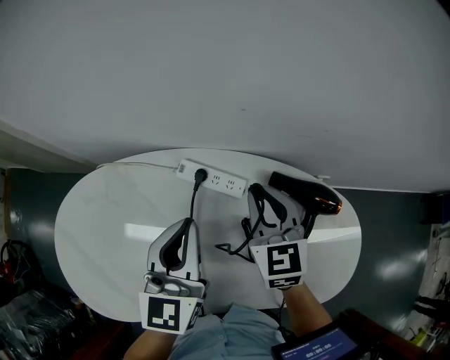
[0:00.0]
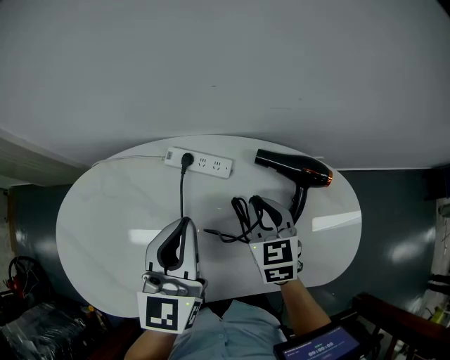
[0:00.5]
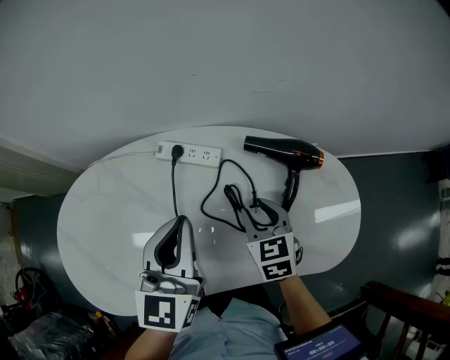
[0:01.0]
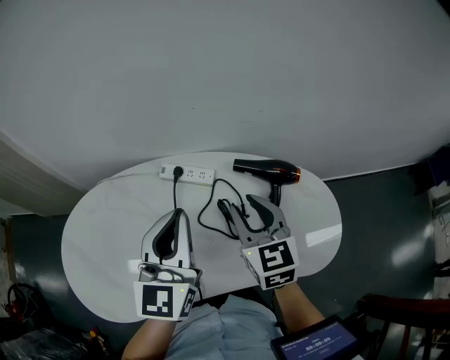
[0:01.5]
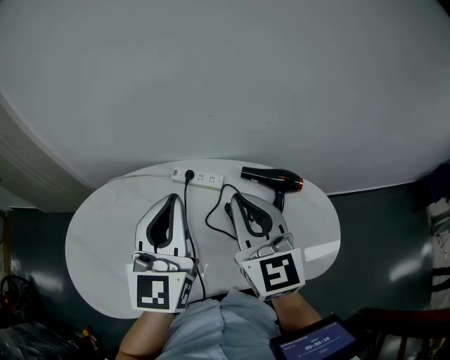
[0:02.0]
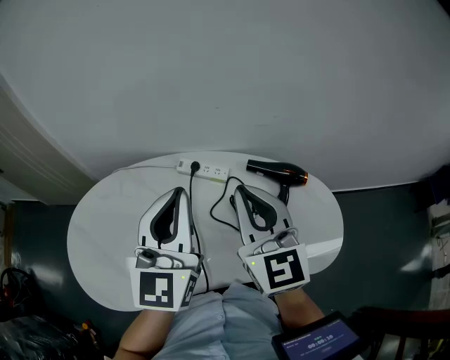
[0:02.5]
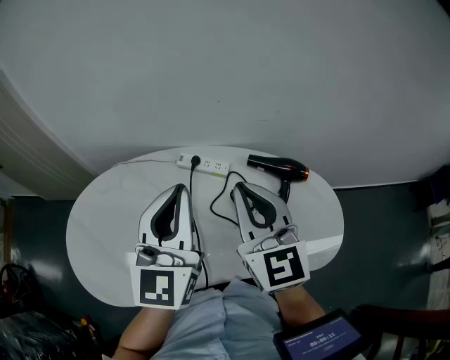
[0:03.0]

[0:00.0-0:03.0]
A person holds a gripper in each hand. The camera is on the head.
0:00.0 to 0:01.5: The two grippers go approximately 10 cm backward and upward. The right gripper opens up.
0:01.5 to 0:03.0: The left gripper goes roughly 5 cm upward. Meanwhile the right gripper is displaced upward and to the left by roughly 15 cm, and closes up.

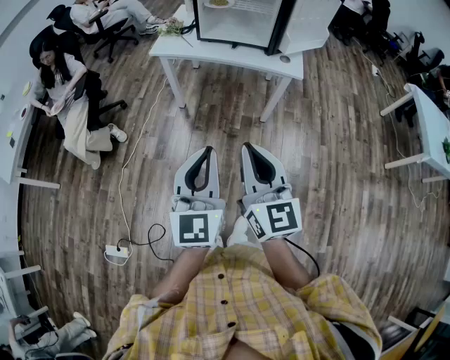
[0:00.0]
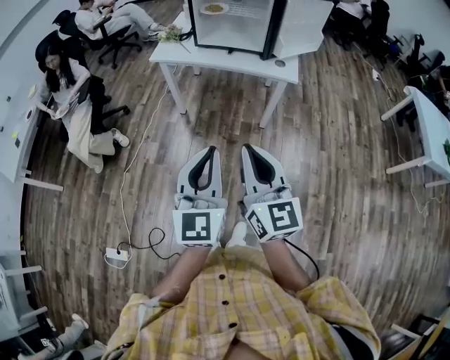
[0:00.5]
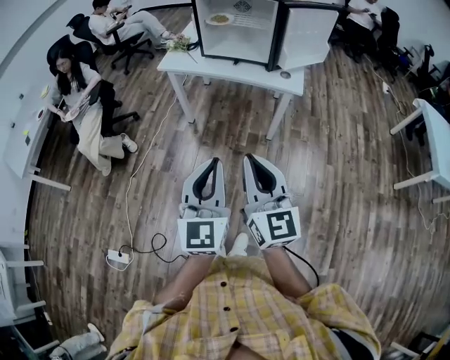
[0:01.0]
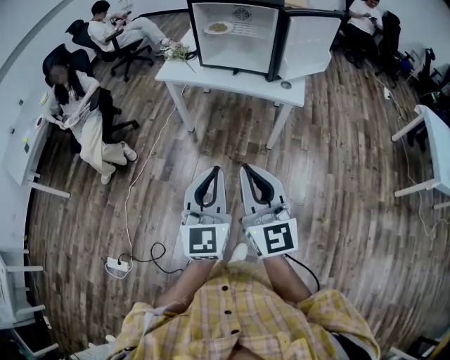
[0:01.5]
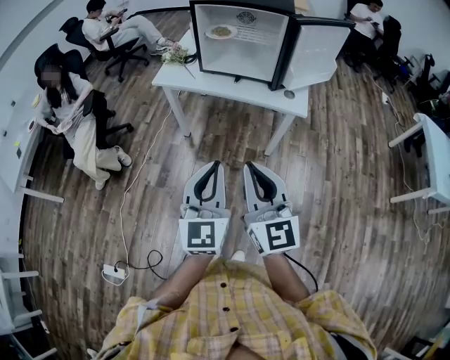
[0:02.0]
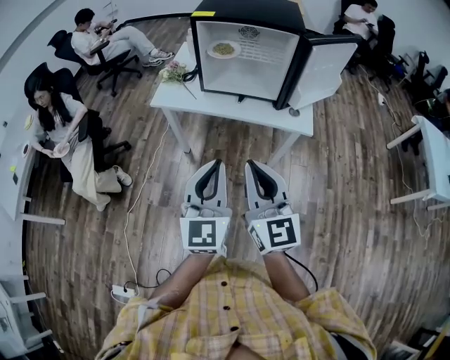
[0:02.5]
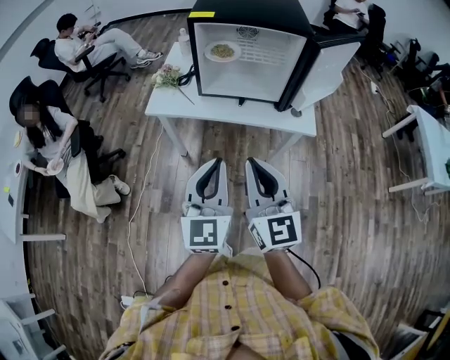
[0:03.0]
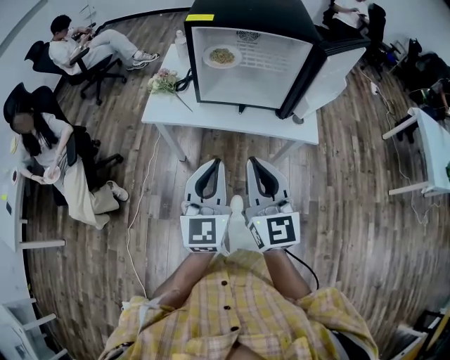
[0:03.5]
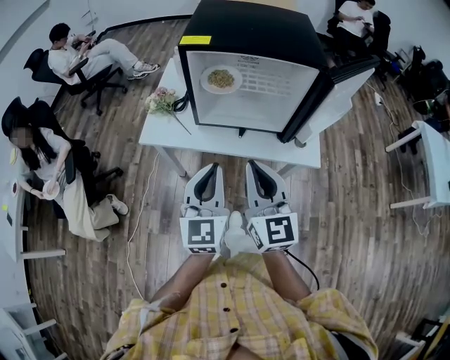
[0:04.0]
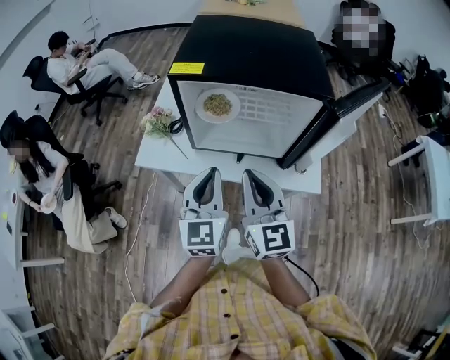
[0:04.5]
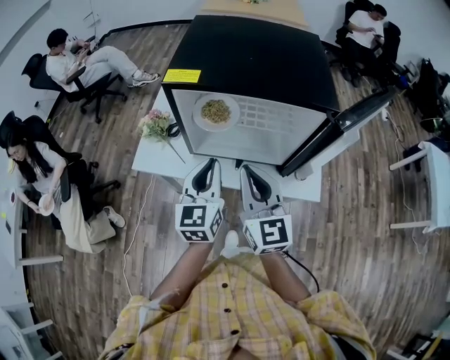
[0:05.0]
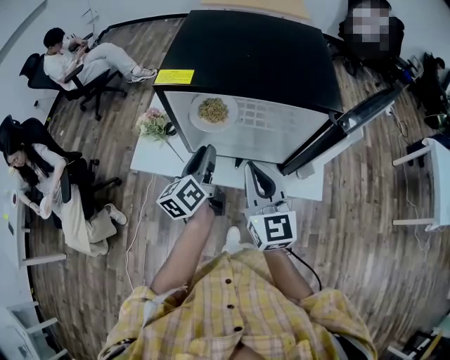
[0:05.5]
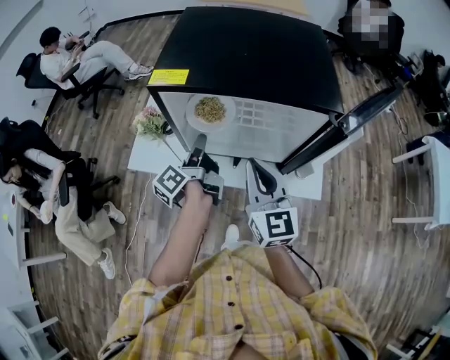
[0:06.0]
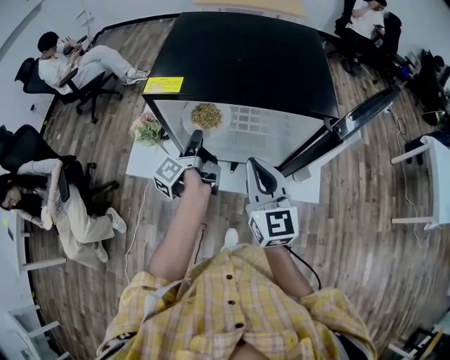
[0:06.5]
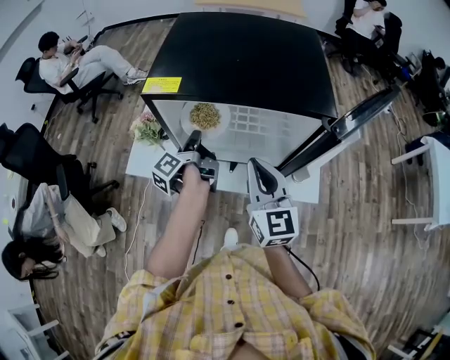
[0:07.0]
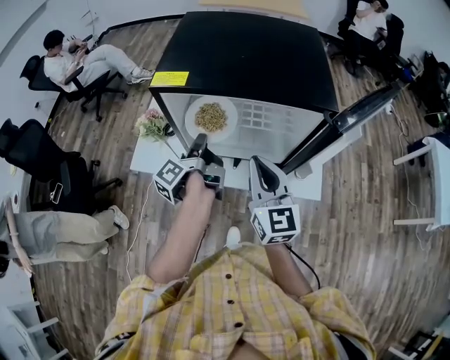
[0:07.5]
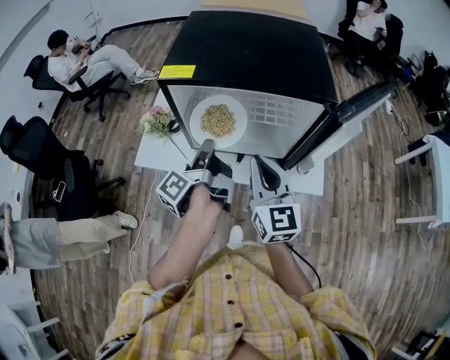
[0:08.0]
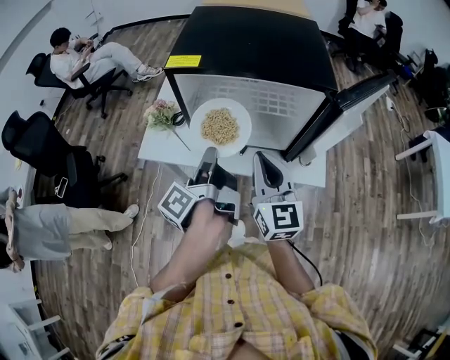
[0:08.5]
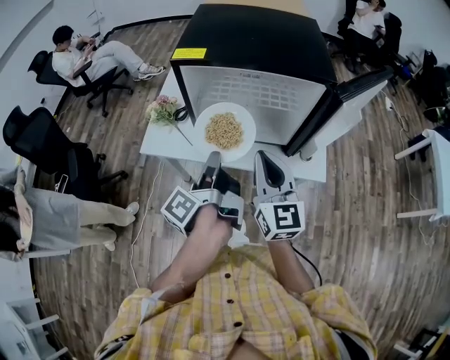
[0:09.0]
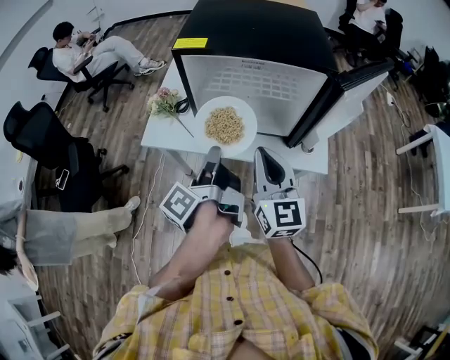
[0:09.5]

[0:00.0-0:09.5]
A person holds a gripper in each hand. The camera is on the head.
0:00.0 to 0:02.0: Both grippers move forward and to the right, roughly 15 cm.
0:02.0 to 0:04.0: Both grippers travel together forward, approximately 30 cm.
0:04.0 to 0:05.5: Both grippers move forward, about 20 cm. The left gripper twists approximately 50 degrees counterclockwise, seen from behind, and opens.
0:05.5 to 0:07.5: The left gripper rolls counterclockwise, seen from behind, by some 50 degrees.
0:07.5 to 0:09.5: The right gripper goes some 10 cm backward. Meanwhile the left gripper heads backward, covering approximately 15 cm.

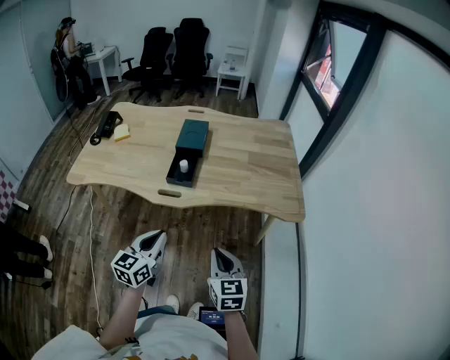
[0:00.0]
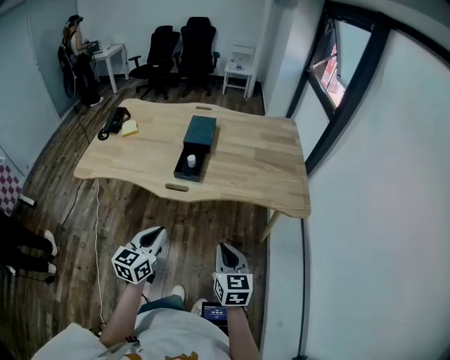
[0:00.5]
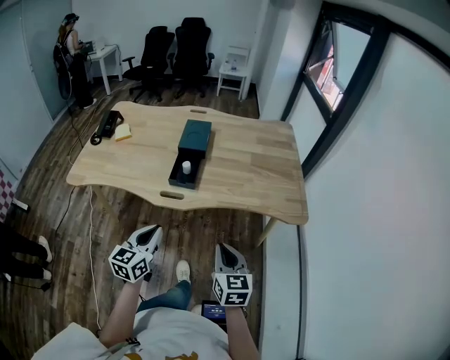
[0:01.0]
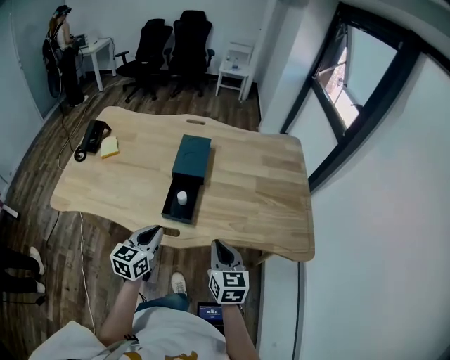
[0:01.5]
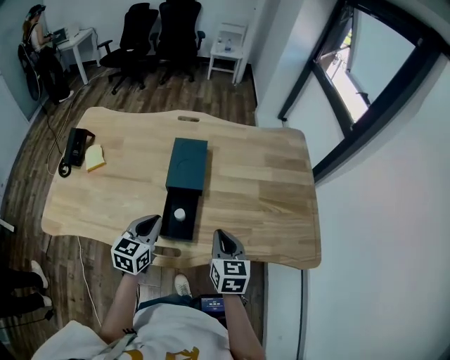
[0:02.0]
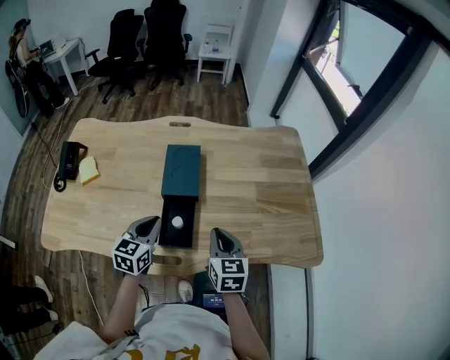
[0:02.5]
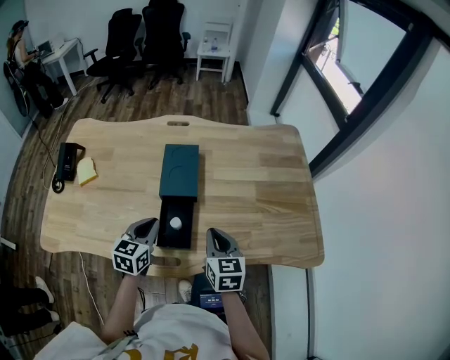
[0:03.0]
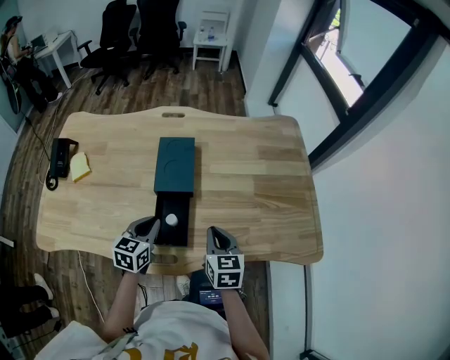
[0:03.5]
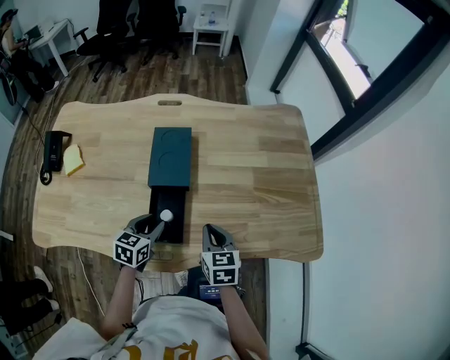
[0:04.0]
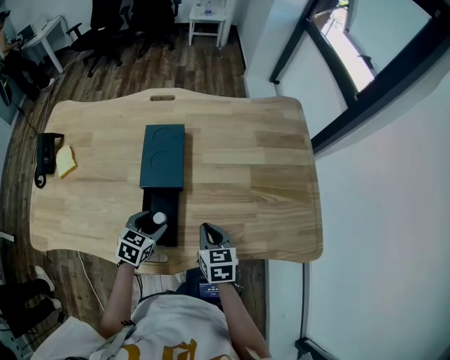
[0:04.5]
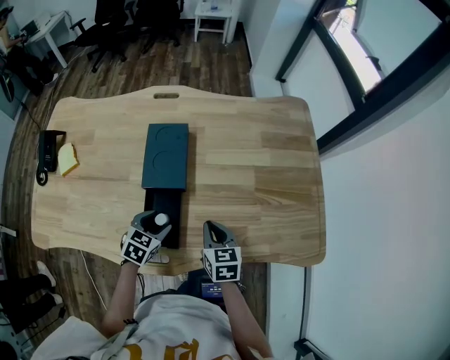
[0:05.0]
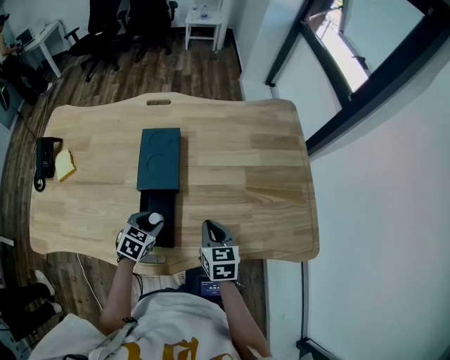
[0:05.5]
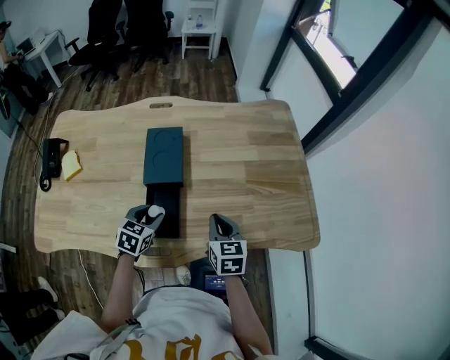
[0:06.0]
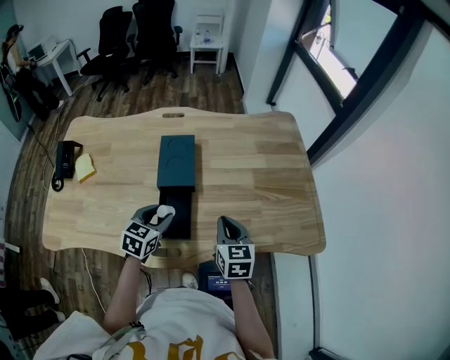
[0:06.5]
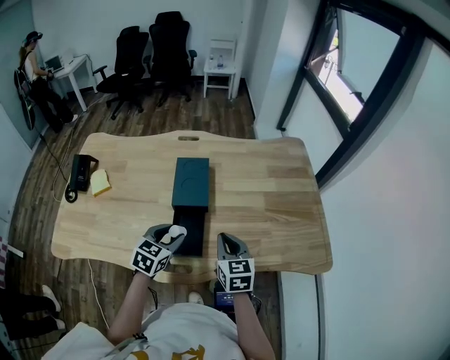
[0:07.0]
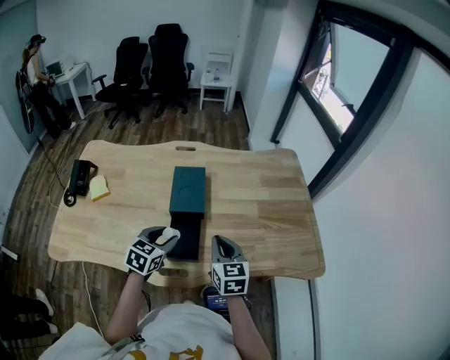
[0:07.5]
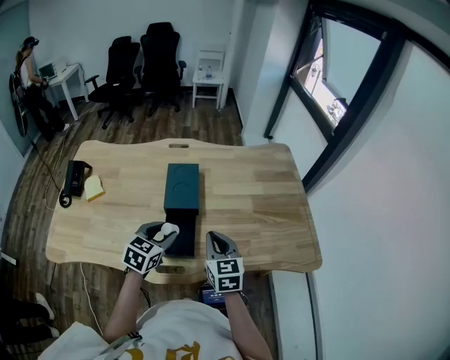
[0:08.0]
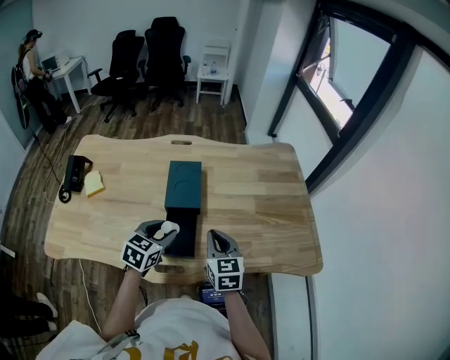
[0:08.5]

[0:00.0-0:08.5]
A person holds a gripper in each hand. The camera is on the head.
0:00.0 to 0:02.0: The two grippers go about 35 cm forward.
0:02.0 to 0:04.0: Both grippers travel together downward, roughly 10 cm. The left gripper opens its fingers.
0:04.0 to 0:06.5: Both grippers travel together upward, roughly 5 cm.
0:06.5 to 0:08.5: The right gripper shifts some 5 cm to the left. The left gripper travels upward by about 5 cm.

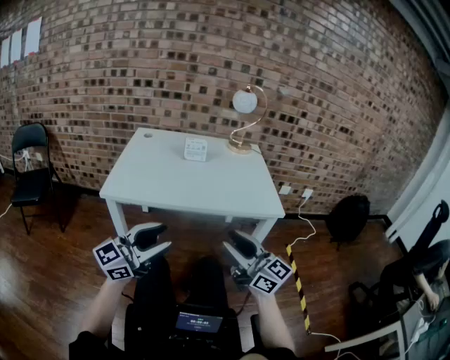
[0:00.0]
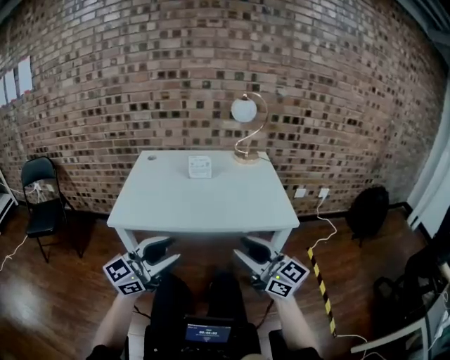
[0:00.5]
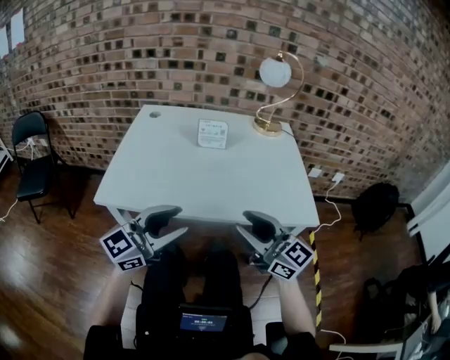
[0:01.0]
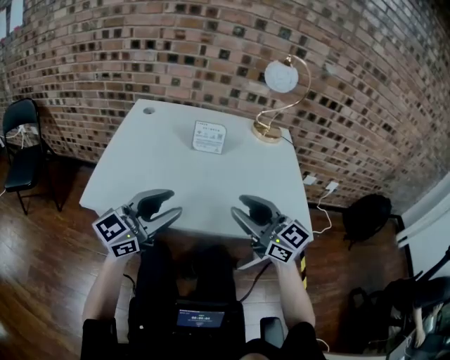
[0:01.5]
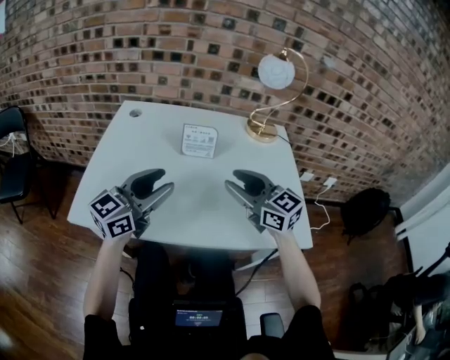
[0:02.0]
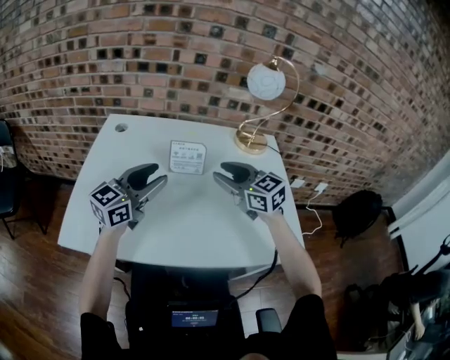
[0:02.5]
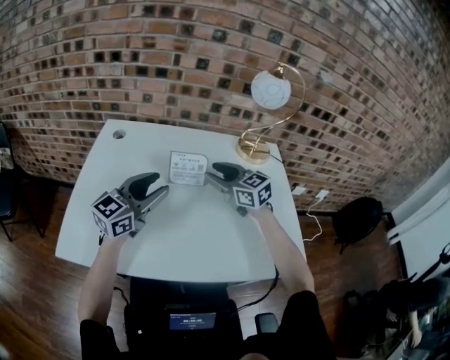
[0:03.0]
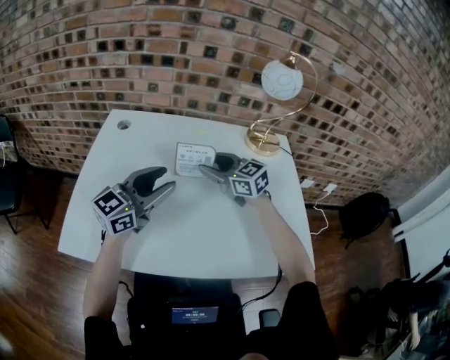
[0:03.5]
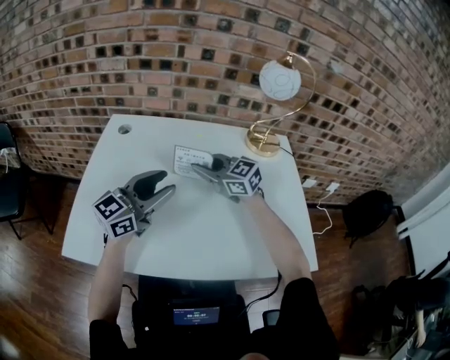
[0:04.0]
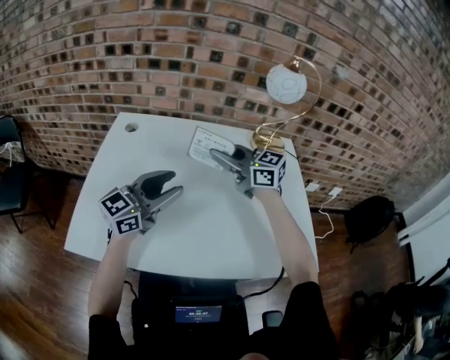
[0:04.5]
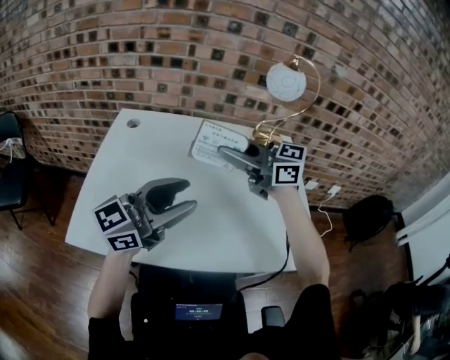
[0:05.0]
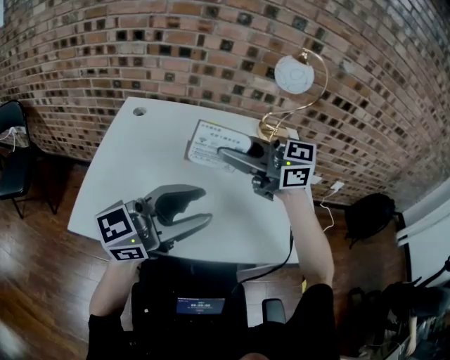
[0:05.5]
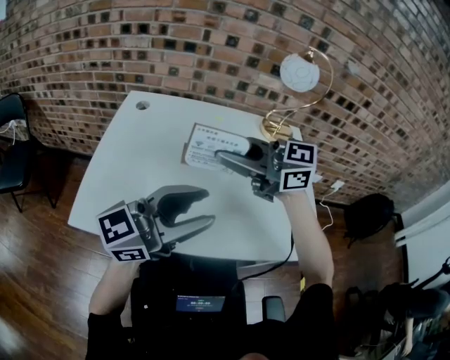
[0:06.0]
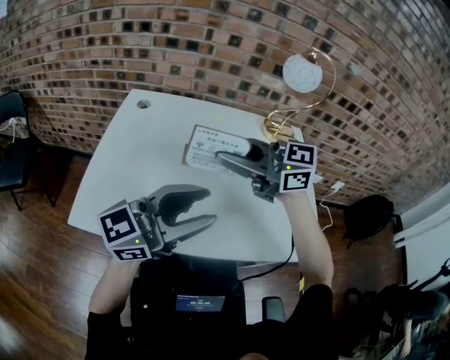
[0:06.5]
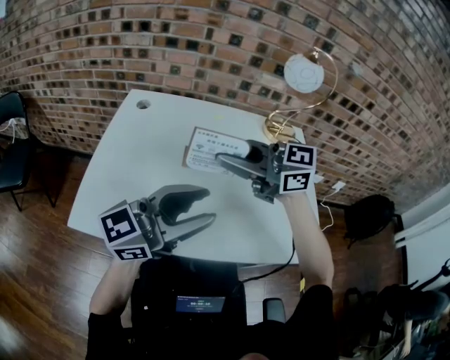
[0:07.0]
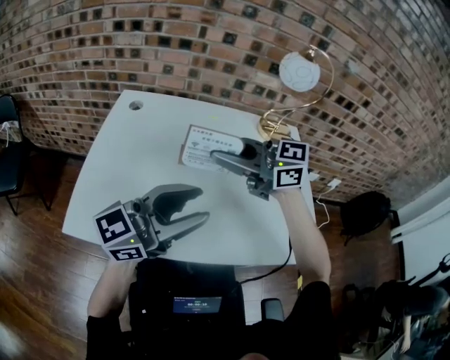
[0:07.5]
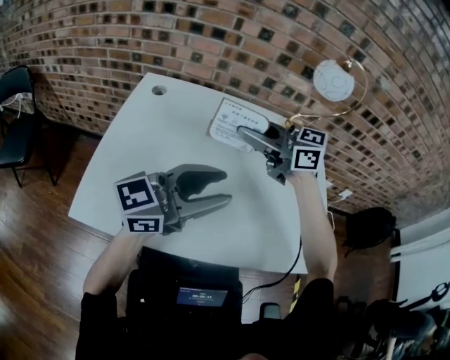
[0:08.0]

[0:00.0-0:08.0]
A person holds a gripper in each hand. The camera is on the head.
0:00.0 to 0:02.0: The grippers both shift forward by roughly 35 cm. The right gripper swivels about 30 degrees; the left gripper turns by roughly 20 degrees.
0:02.0 to 0:04.0: The left gripper heads forward, covering approximately 10 cm; the right gripper travels forward and to the left by roughly 20 cm, and closes.
0:04.0 to 0:06.0: The right gripper travels upward by about 15 cm, and rotates approximately 20 degrees; the left gripper moves roughly 20 cm.
0:06.0 to 0:08.0: The right gripper shifts by approximately 10 cm. The left gripper moves about 10 cm.
